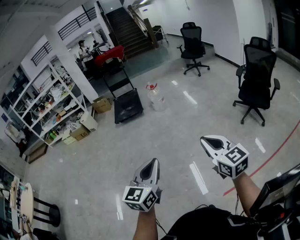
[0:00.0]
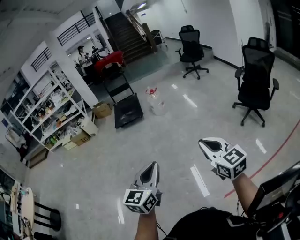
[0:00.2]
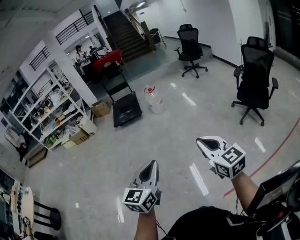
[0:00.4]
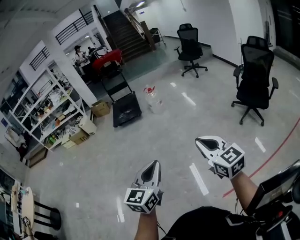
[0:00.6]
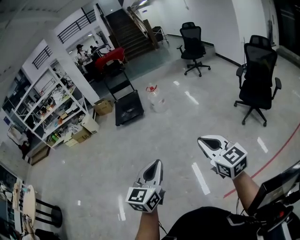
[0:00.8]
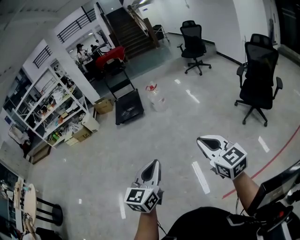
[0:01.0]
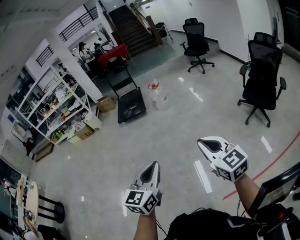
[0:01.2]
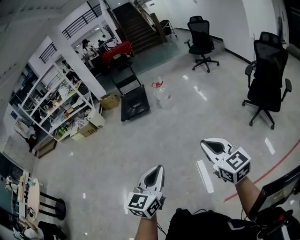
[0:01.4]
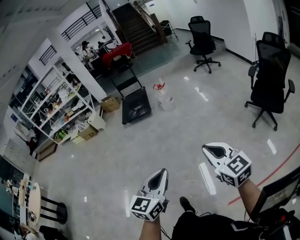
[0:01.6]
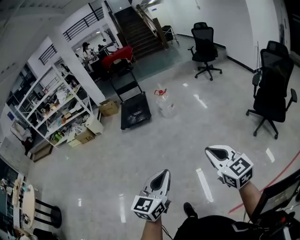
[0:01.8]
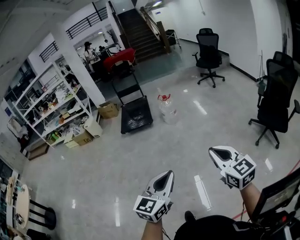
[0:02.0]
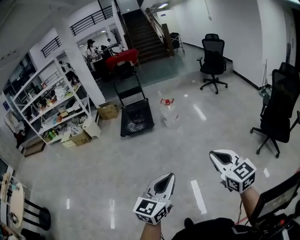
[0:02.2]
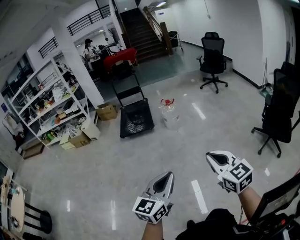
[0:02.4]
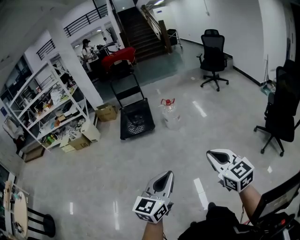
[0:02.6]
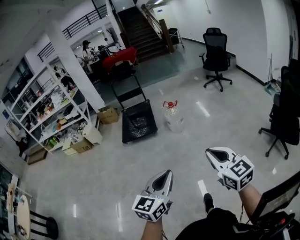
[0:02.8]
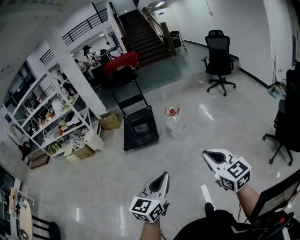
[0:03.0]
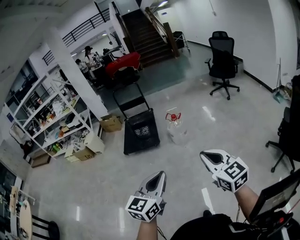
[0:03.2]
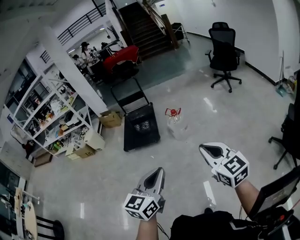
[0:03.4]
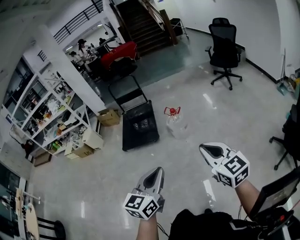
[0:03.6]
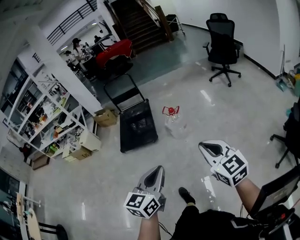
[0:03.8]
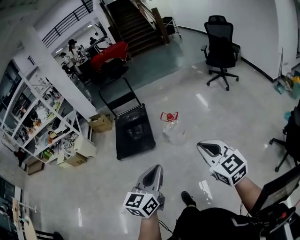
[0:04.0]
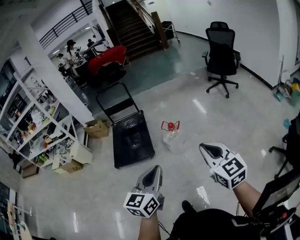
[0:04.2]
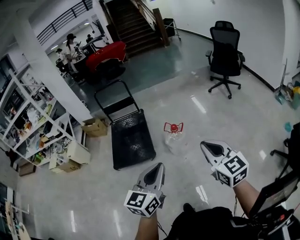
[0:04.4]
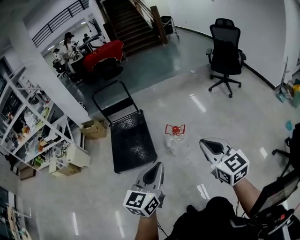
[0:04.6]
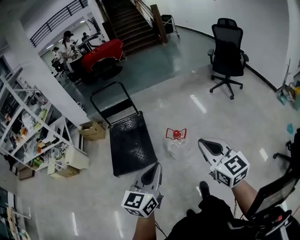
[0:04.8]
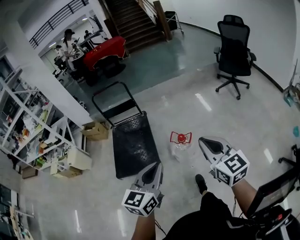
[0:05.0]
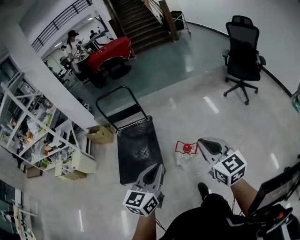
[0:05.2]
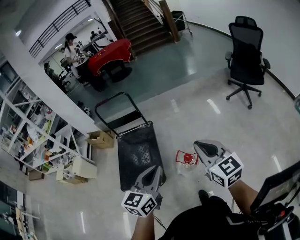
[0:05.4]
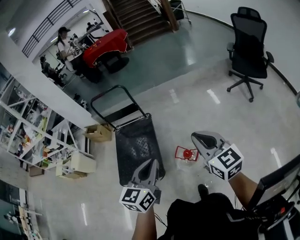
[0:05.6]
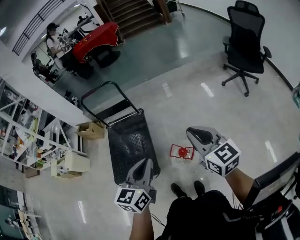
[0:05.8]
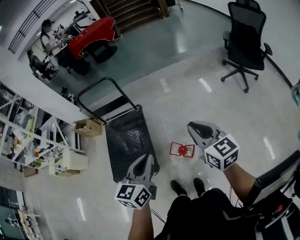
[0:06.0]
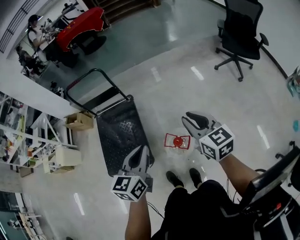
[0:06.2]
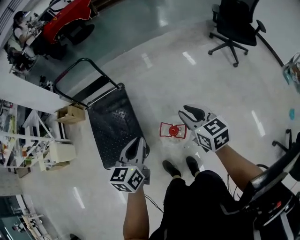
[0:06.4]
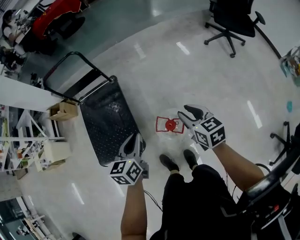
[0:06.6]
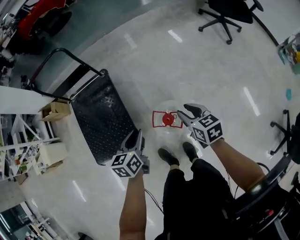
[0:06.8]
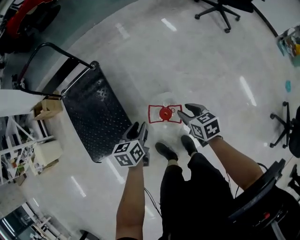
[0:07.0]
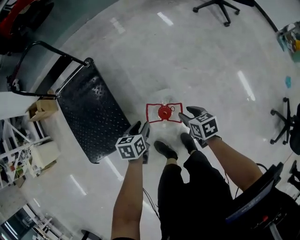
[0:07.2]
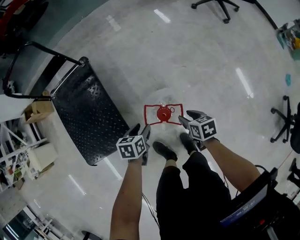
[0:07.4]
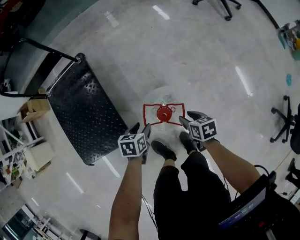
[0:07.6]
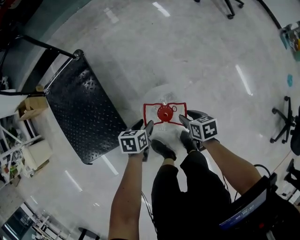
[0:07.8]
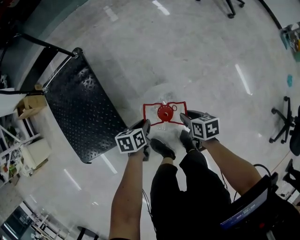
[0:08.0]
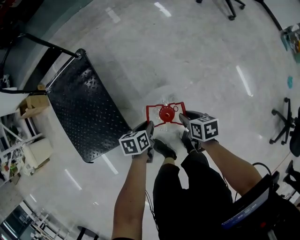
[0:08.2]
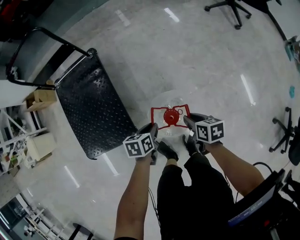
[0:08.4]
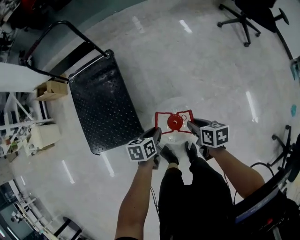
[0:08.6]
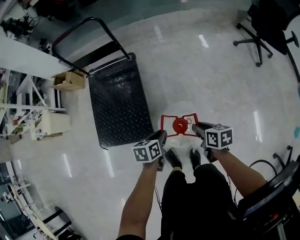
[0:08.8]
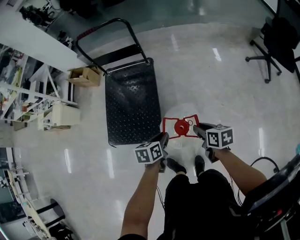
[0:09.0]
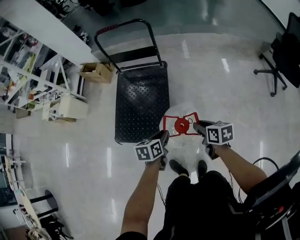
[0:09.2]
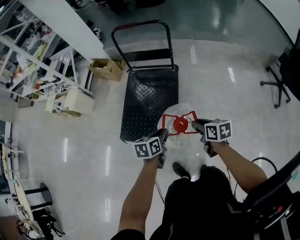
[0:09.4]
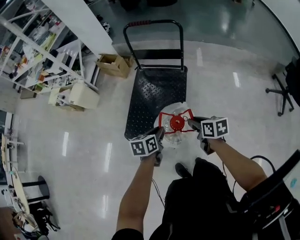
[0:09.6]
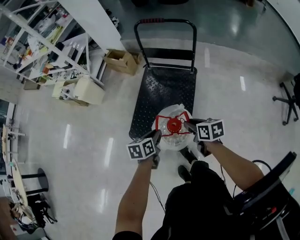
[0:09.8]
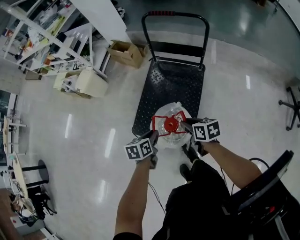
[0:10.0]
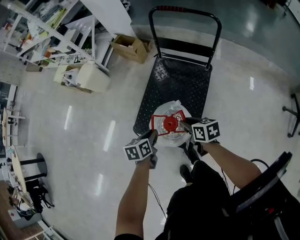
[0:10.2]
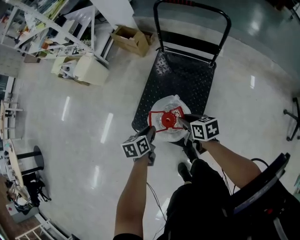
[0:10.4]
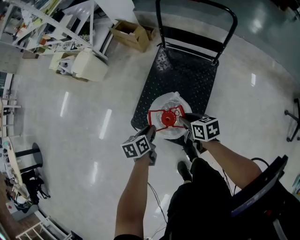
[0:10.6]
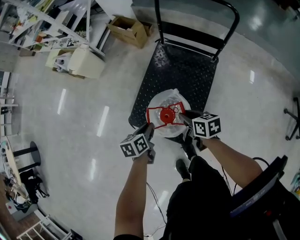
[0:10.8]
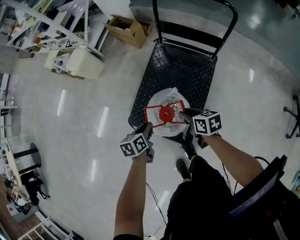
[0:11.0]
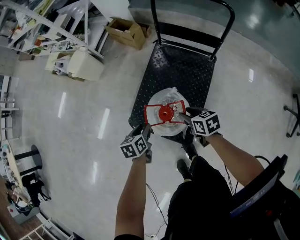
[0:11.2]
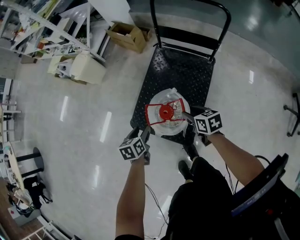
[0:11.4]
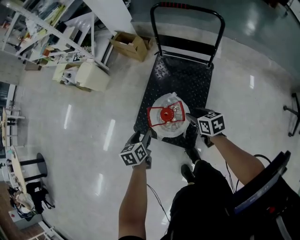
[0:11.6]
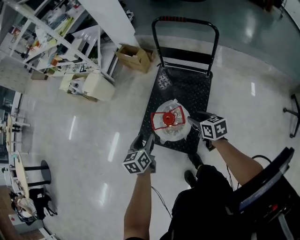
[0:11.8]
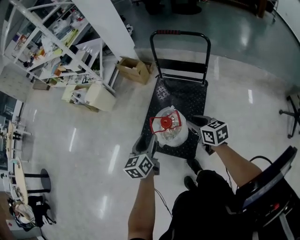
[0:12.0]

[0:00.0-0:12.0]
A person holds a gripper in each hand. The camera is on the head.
0:00.0 to 0:01.6: The left gripper goes some 10 cm to the right and forward, while the right gripper heads forward and to the right, covering some 10 cm.
0:01.6 to 0:03.0: Both grippers are carried forward, approximately 50 cm.
0:03.0 to 0:04.4: The two grippers travel together, forward, approximately 50 cm.
0:04.4 to 0:06.0: The pair of grippers is taken forward, about 50 cm.
0:06.0 to 0:07.6: Both grippers move downward, approximately 60 cm. The left gripper angles its fingers downward, by some 40 degrees, and opens its fingers. Meanwhile the right gripper angles its fingers downward, by roughly 50 degrees, and opens its fingers.
0:07.6 to 0:09.0: The grippers both shift upward and to the left by some 30 cm. The left gripper turns by some 30 degrees, and closes. The right gripper rotates approximately 20 degrees.
0:09.0 to 0:10.4: The two grippers travel together, approximately 40 cm. The right gripper turns by approximately 30 degrees, while the left gripper rotates about 30 degrees.
0:10.4 to 0:12.0: The grippers both shift upward by some 15 cm. The left gripper swivels about 30 degrees, and opens its fingers.

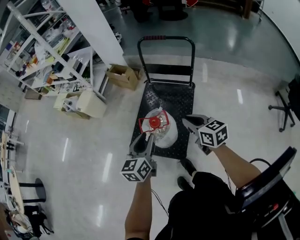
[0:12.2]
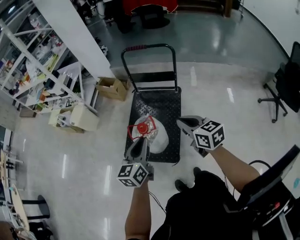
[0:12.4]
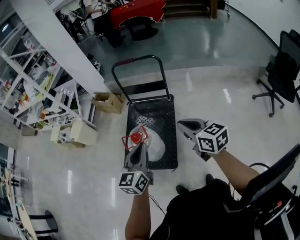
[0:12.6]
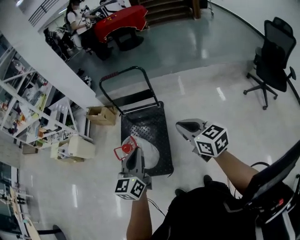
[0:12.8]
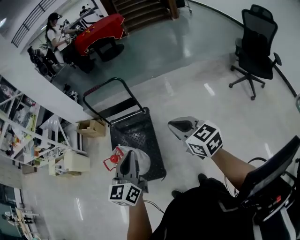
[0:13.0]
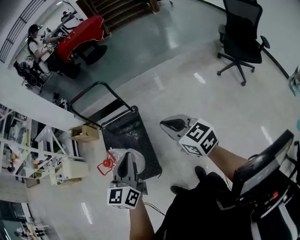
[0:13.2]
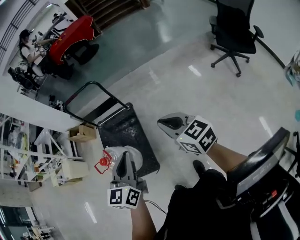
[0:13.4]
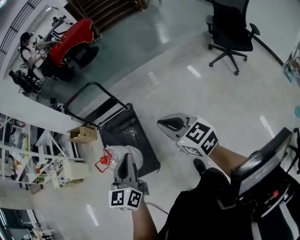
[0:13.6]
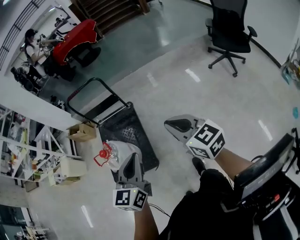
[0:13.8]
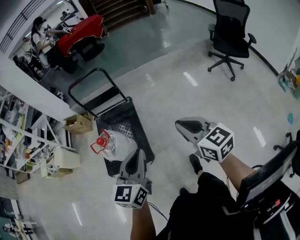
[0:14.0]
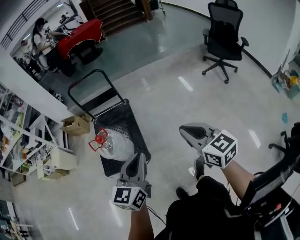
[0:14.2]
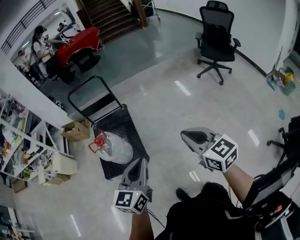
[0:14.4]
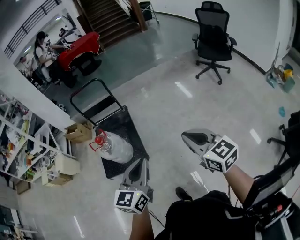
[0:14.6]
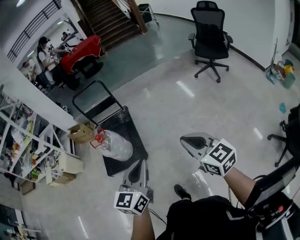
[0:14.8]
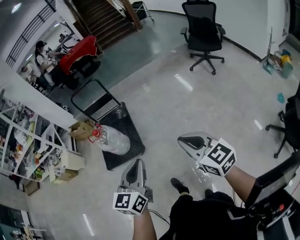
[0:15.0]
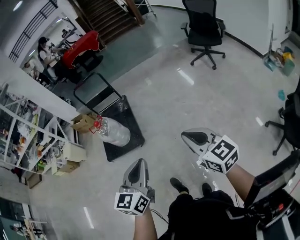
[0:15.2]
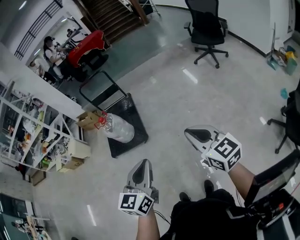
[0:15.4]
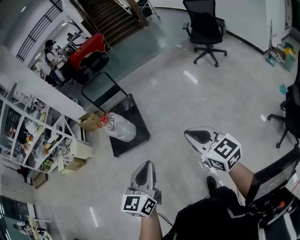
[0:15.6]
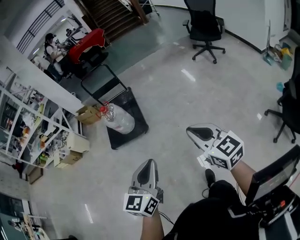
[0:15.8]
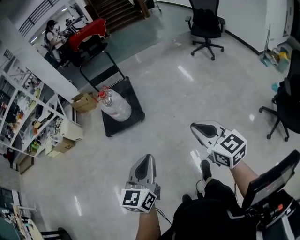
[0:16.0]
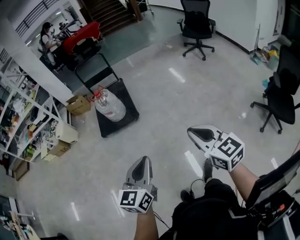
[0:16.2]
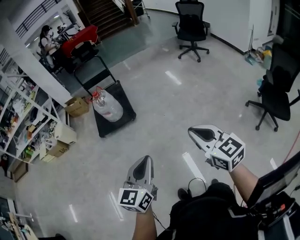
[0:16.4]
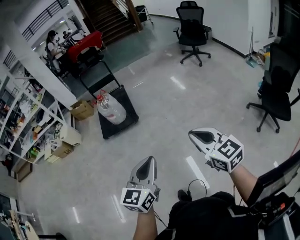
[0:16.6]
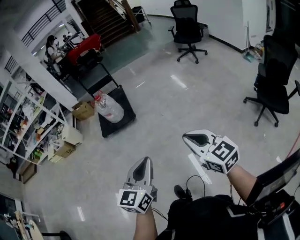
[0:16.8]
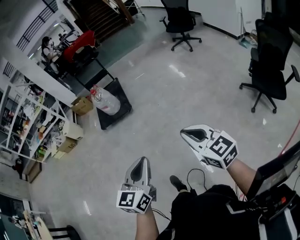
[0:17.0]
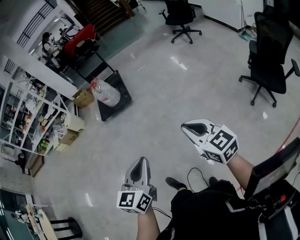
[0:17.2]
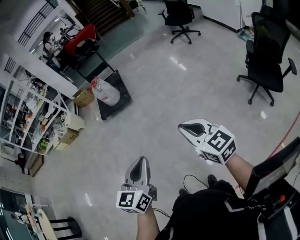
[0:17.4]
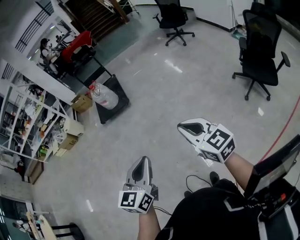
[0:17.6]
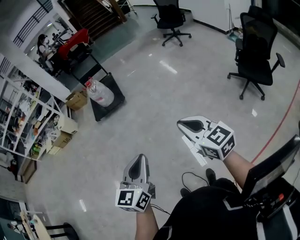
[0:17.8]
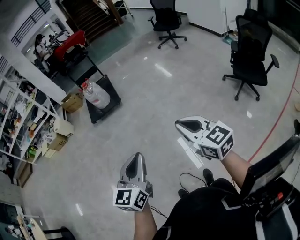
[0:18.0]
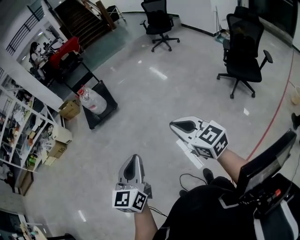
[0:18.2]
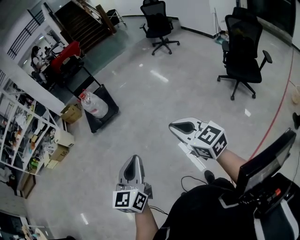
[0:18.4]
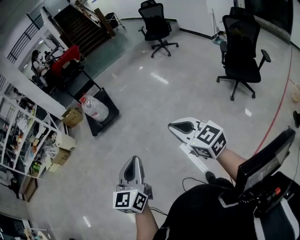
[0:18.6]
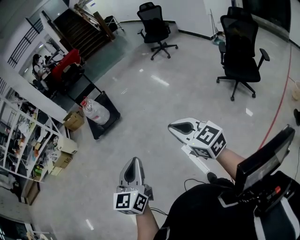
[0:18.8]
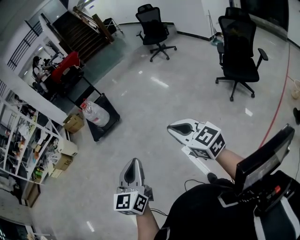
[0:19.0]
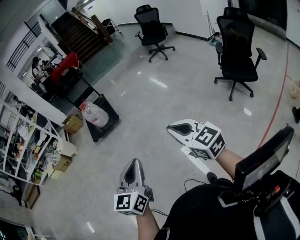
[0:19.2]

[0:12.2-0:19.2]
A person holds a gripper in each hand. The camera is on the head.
0:12.2 to 0:13.6: The two grippers travel together, to the right and backward, roughly 40 cm. The right gripper swivels about 30 degrees. Meanwhile the left gripper swivels roughly 30 degrees, and closes up.
0:13.6 to 0:15.0: The two grippers travel together, backward, some 50 cm.
0:15.0 to 0:16.4: Both grippers are carried backward, approximately 50 cm.
0:16.4 to 0:17.8: Both grippers move backward, roughly 35 cm.
0:17.8 to 0:19.2: The right gripper changes place by approximately 5 cm.

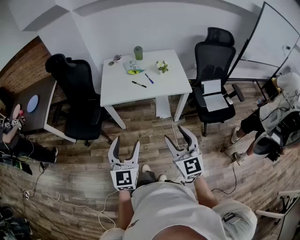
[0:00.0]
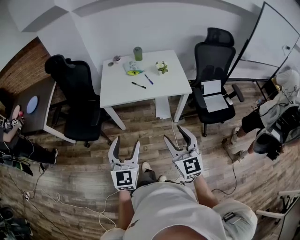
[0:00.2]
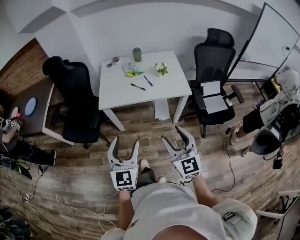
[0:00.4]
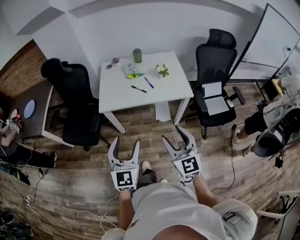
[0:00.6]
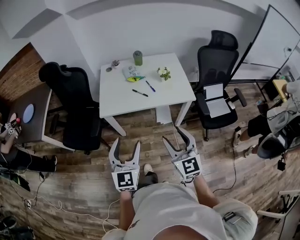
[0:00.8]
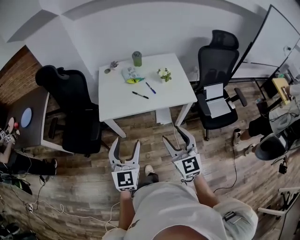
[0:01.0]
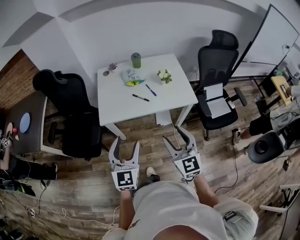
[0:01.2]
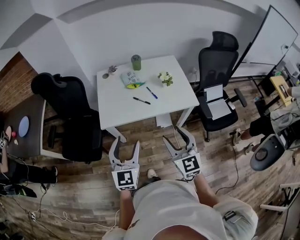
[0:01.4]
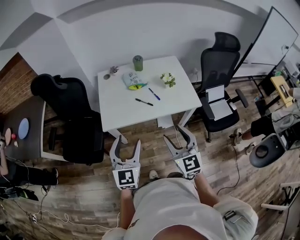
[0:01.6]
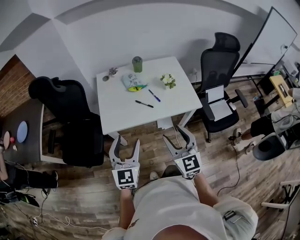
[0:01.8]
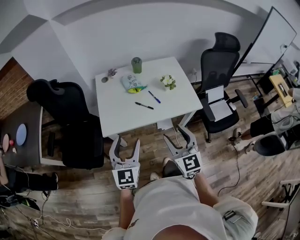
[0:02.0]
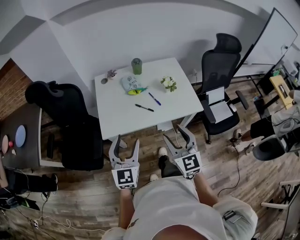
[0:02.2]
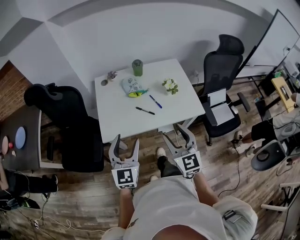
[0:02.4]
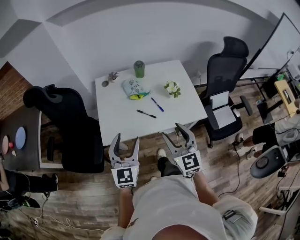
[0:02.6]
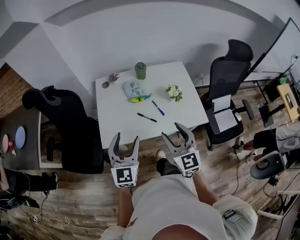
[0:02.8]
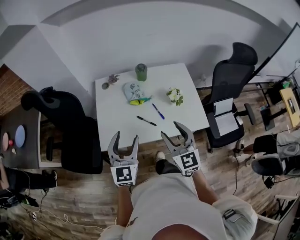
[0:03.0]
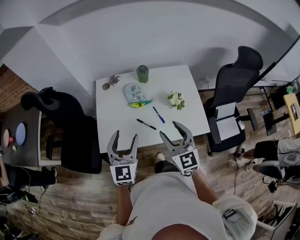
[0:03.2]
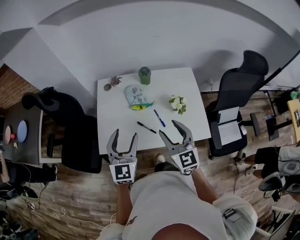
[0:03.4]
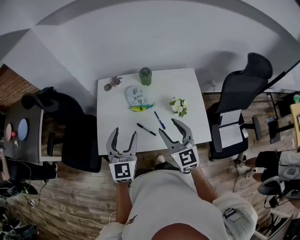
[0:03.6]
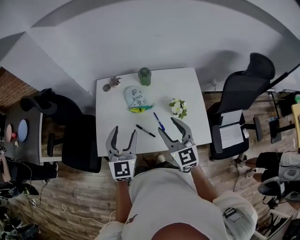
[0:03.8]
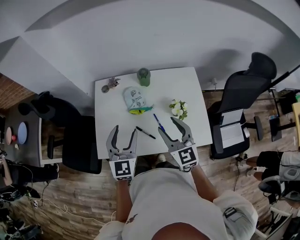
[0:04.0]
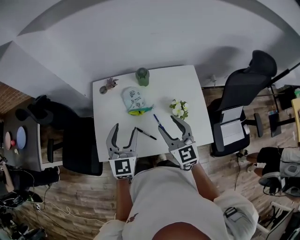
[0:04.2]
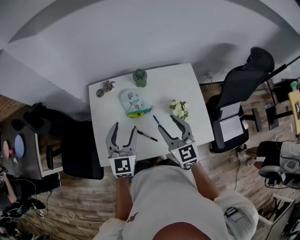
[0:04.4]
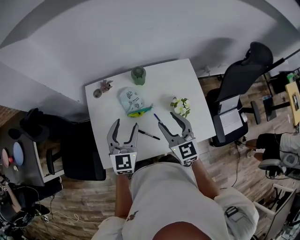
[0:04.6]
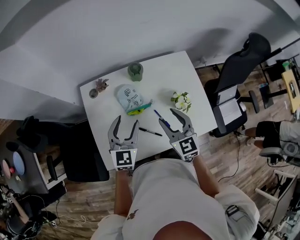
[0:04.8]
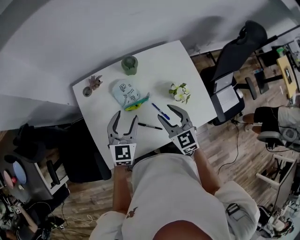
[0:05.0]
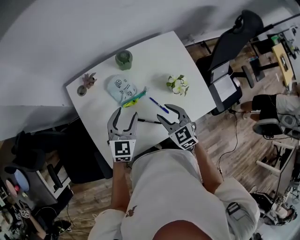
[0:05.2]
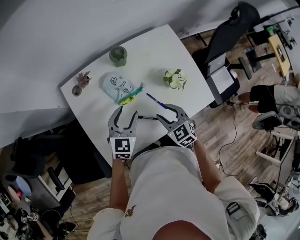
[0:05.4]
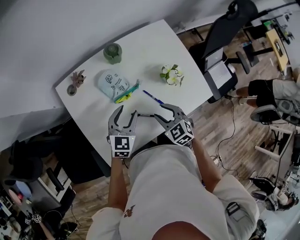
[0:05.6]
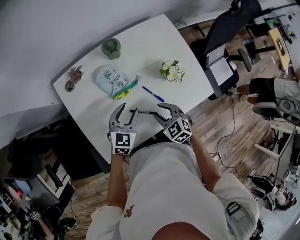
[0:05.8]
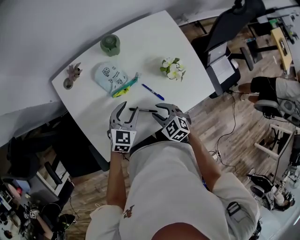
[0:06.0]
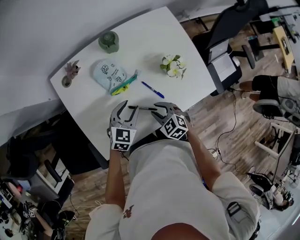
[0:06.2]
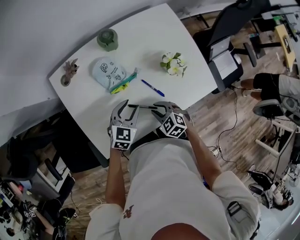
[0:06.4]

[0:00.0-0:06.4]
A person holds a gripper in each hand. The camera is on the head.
0:00.0 to 0:01.6: Both grippers move forward, approximately 25 cm.
0:01.6 to 0:03.2: Both grippers travel together forward, roughly 25 cm.
0:03.2 to 0:04.8: The left gripper is displaced forward by approximately 20 cm. The right gripper is displaced forward and downward by some 20 cm.
0:04.8 to 0:06.4: Both grippers travel together downward, some 20 cm. The right gripper tilts its fingers some 40 degrees downward, and closes its fingers, while the left gripper turns by about 40 degrees.
